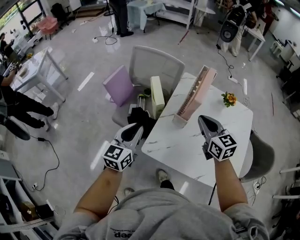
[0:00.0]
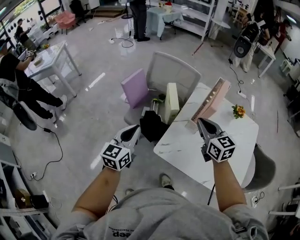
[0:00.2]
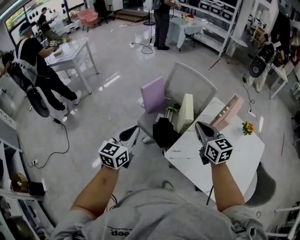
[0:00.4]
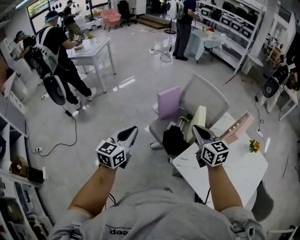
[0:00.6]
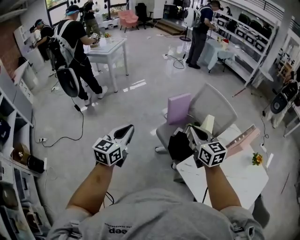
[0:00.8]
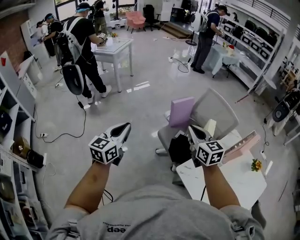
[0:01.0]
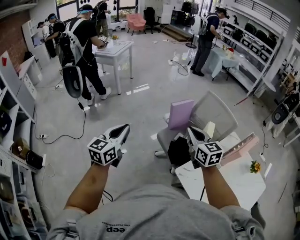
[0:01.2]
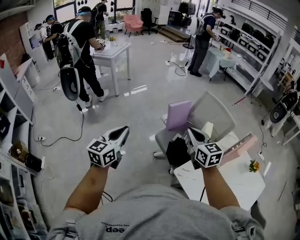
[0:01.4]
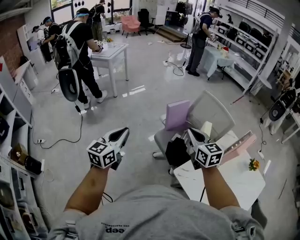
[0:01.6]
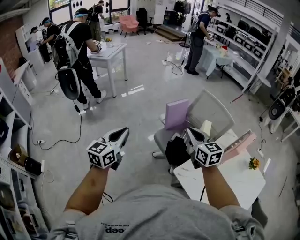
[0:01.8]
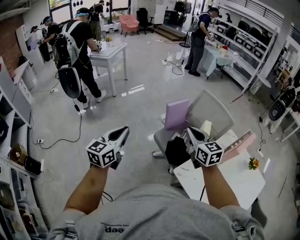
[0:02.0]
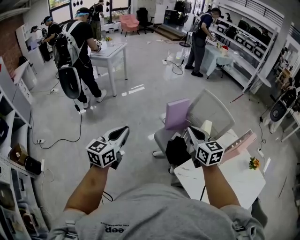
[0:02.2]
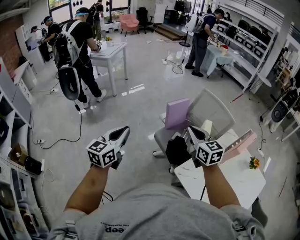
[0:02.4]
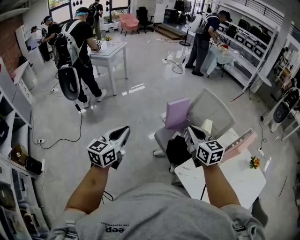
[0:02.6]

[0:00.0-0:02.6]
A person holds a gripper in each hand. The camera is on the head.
0:00.0 to 0:01.2: The right gripper ends up about 35 cm from where it was, and changes its angle by about 30 degrees. The left gripper moves approximately 40 cm, and swivels roughly 30 degrees.
0:01.2 to 0:02.6: There are only small adjustments of the grippers.

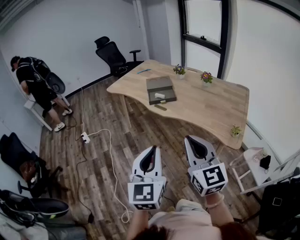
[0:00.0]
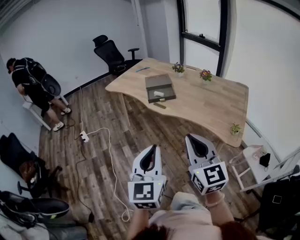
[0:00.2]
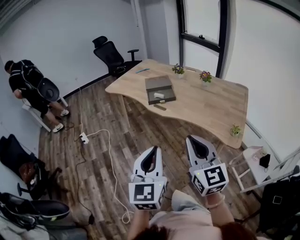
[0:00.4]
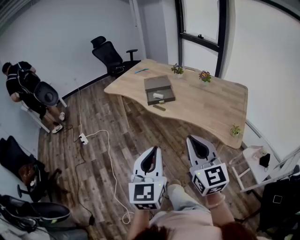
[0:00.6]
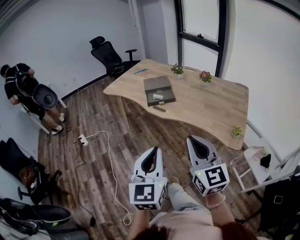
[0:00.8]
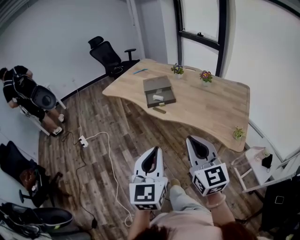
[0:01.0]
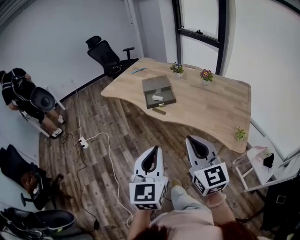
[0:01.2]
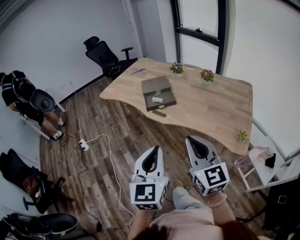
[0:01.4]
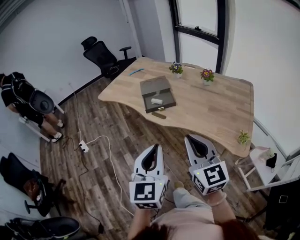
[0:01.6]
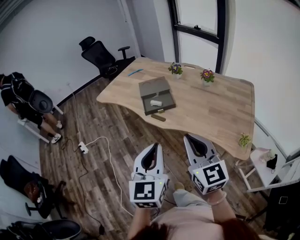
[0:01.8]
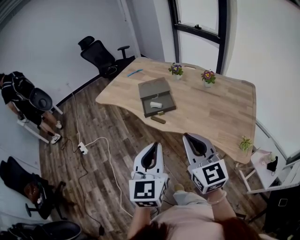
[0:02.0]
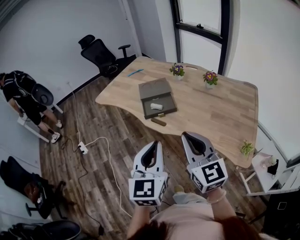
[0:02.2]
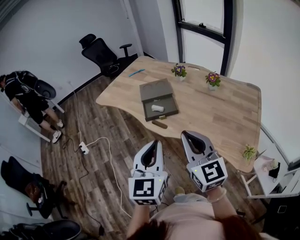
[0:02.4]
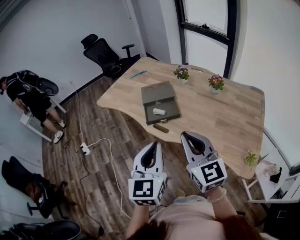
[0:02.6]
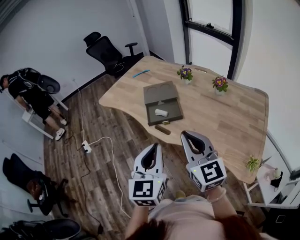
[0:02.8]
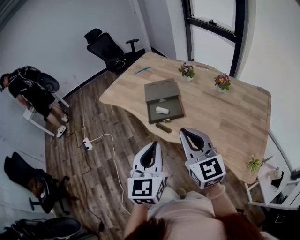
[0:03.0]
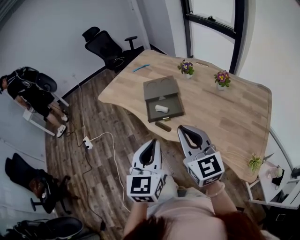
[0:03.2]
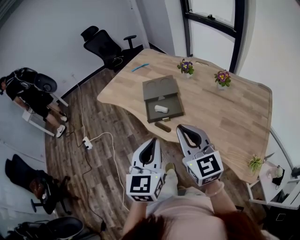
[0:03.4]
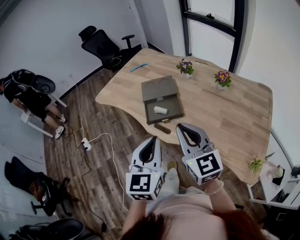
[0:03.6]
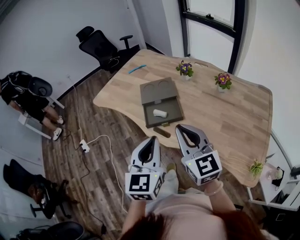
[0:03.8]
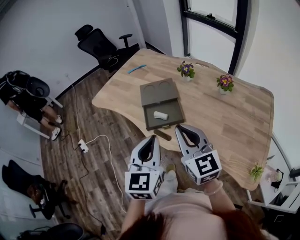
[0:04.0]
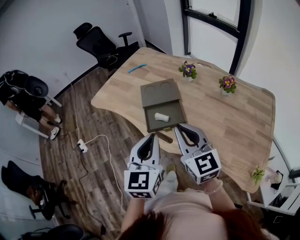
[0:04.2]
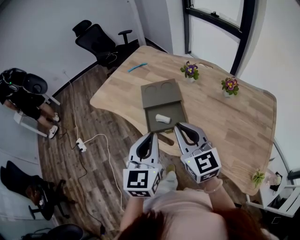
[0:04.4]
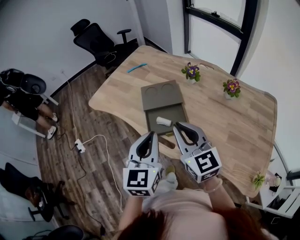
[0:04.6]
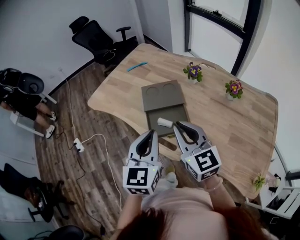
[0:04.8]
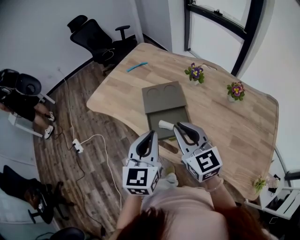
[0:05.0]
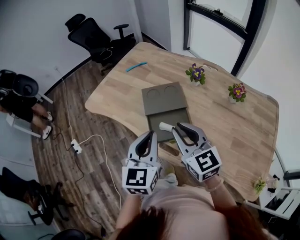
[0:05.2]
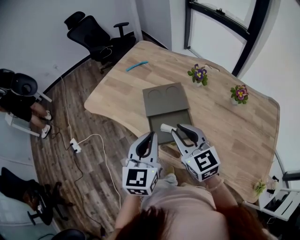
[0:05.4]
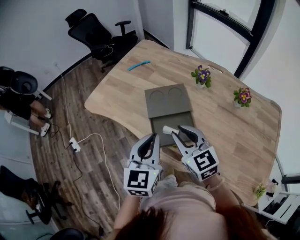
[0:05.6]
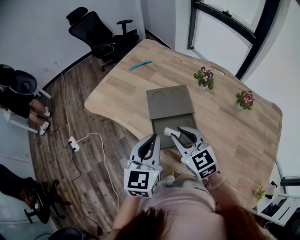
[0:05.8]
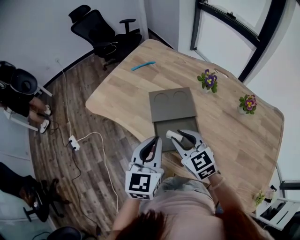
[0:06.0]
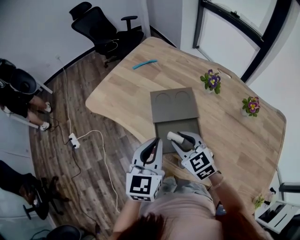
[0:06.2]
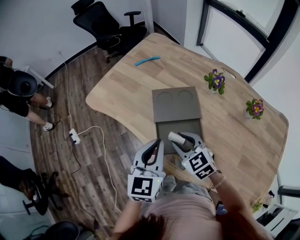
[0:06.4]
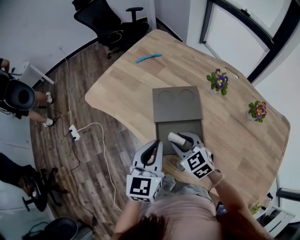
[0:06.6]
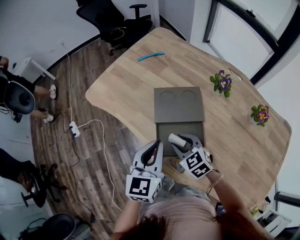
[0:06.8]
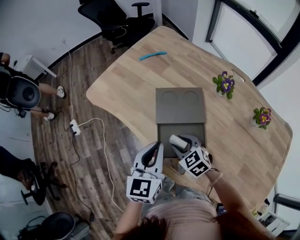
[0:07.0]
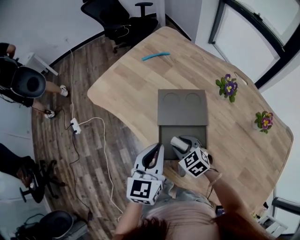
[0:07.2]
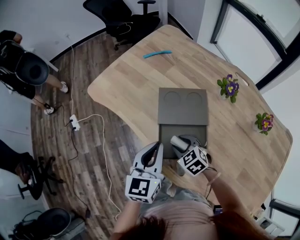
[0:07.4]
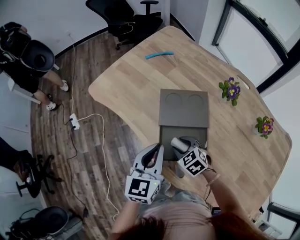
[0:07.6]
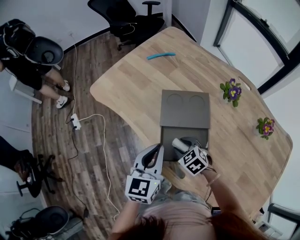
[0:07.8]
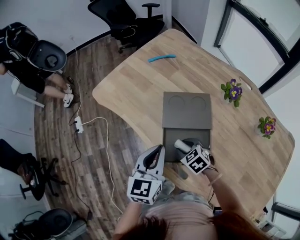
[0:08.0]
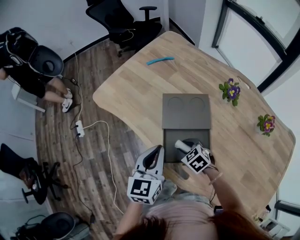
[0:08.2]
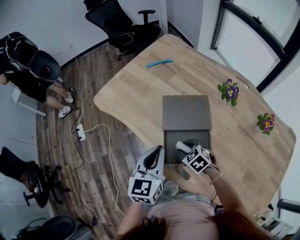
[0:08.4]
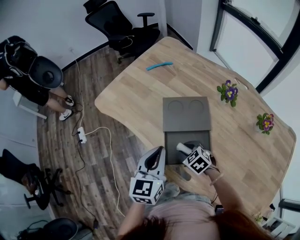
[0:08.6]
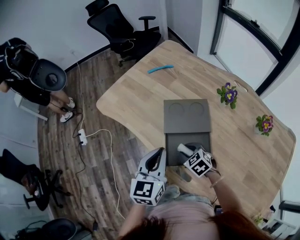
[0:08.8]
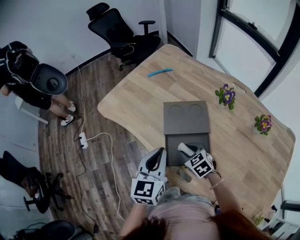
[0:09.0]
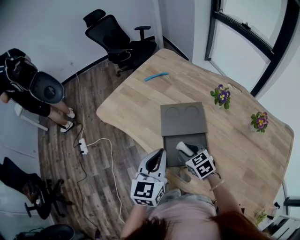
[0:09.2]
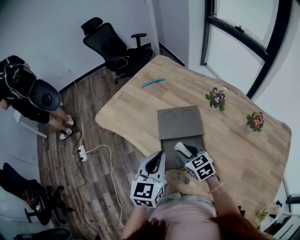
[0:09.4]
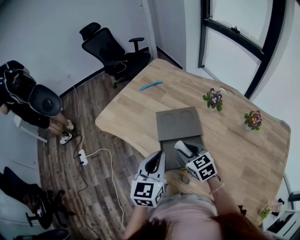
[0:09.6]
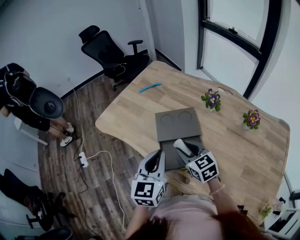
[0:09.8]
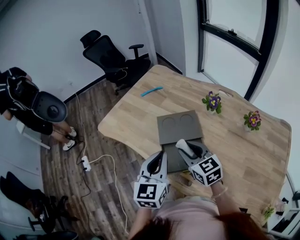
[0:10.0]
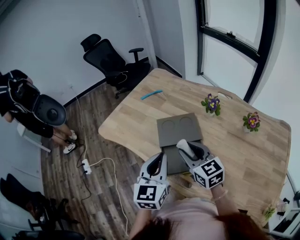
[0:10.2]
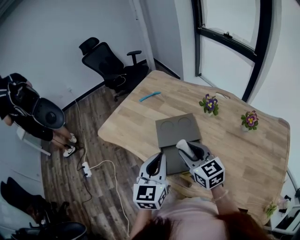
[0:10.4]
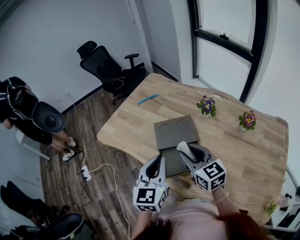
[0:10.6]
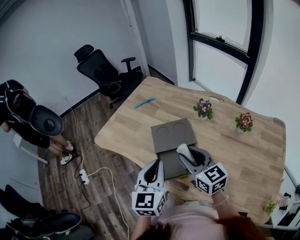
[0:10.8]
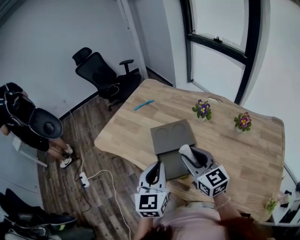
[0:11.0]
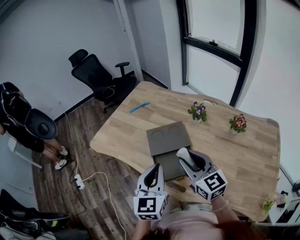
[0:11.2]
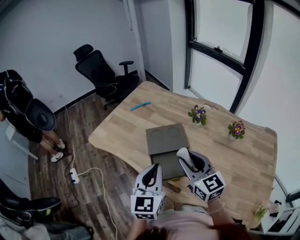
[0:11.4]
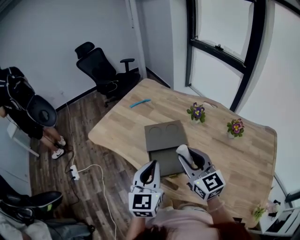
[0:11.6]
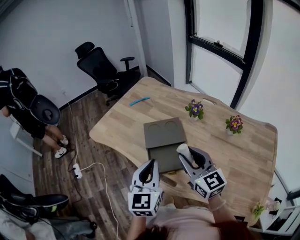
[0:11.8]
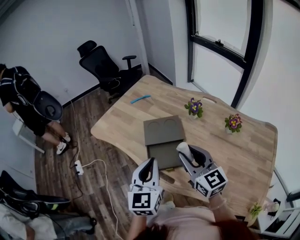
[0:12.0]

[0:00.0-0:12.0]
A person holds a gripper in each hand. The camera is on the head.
0:00.0 to 0:01.6: The grippers both shift forward by some 15 cm.
0:01.6 to 0:03.0: The grippers both shift forward by about 15 cm.
0:03.0 to 0:04.4: The grippers both shift forward by roughly 15 cm.
0:04.4 to 0:06.0: The right gripper travels forward, downward and to the left by approximately 20 cm, turns by some 20 degrees, and opens. Meanwhile the left gripper is displaced forward and downward by some 15 cm.
0:06.0 to 0:07.6: The right gripper is displaced downward by about 20 cm, and swivels roughly 30 degrees. The left gripper travels downward by roughly 10 cm.
0:07.6 to 0:09.0: The grippers stay close to where they were, moving slightly.
0:09.0 to 0:10.4: The left gripper moves upward, approximately 5 cm, while the right gripper travels upward by about 20 cm, and tips its fingers upward by approximately 30 degrees.
0:10.4 to 0:12.0: The left gripper goes about 5 cm backward. The right gripper is displaced upward, backward and to the right by about 10 cm.

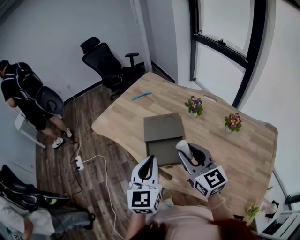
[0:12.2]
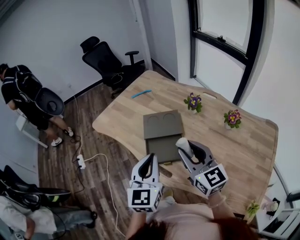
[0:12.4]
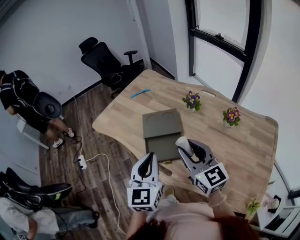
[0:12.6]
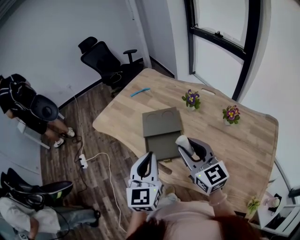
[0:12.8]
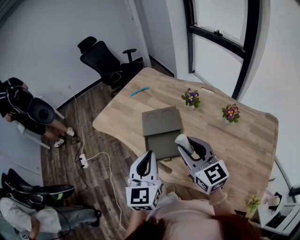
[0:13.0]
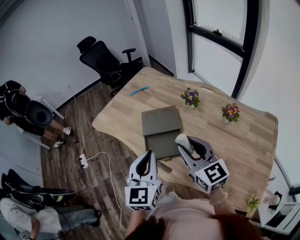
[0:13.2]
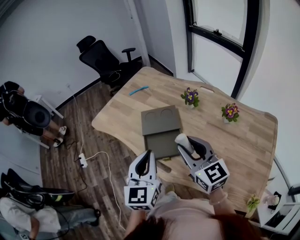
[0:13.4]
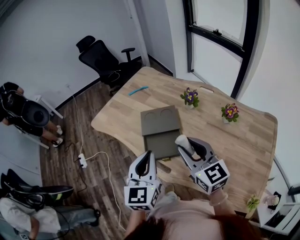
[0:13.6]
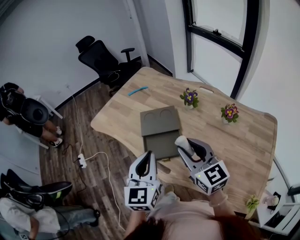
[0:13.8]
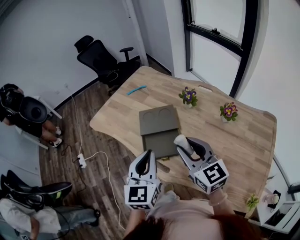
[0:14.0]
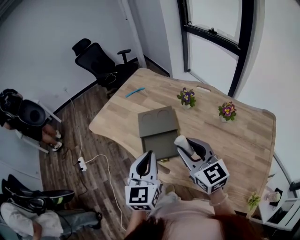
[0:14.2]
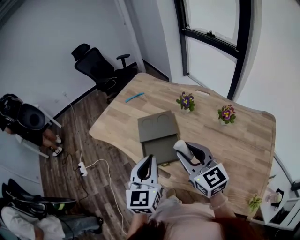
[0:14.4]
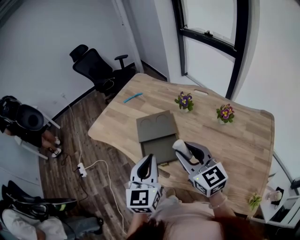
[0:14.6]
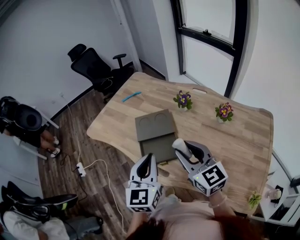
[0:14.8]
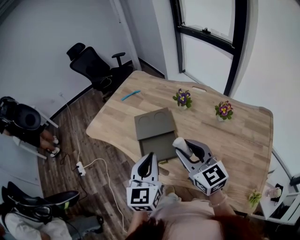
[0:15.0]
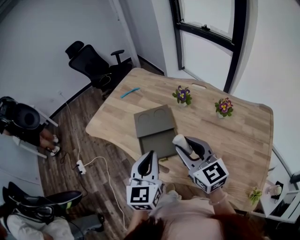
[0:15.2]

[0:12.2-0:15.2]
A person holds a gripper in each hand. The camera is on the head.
0:12.2 to 0:15.2: The grippers move only a little.

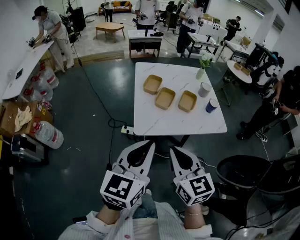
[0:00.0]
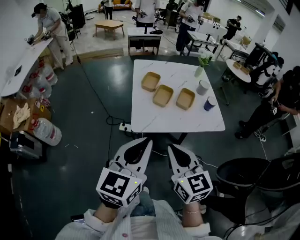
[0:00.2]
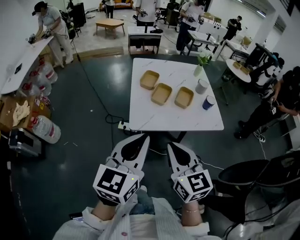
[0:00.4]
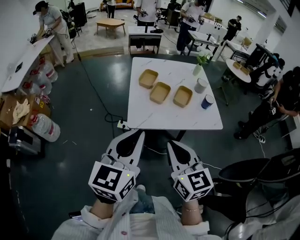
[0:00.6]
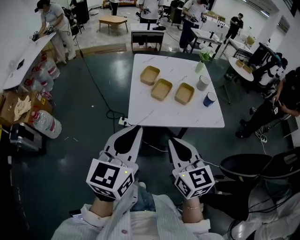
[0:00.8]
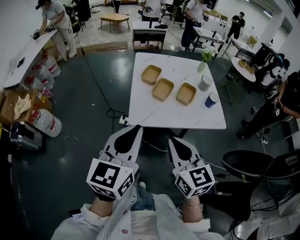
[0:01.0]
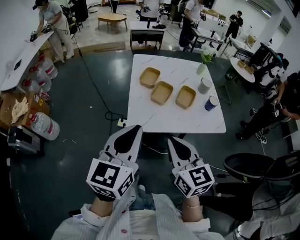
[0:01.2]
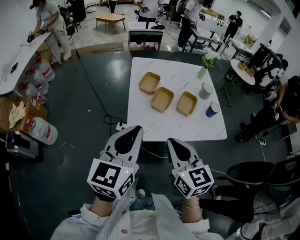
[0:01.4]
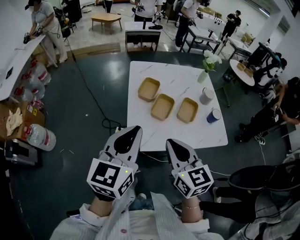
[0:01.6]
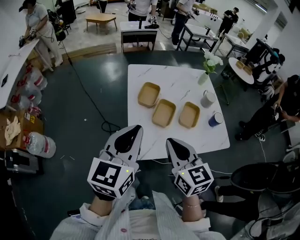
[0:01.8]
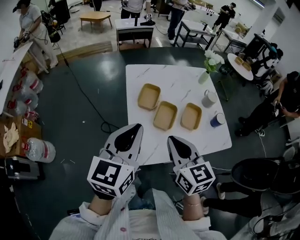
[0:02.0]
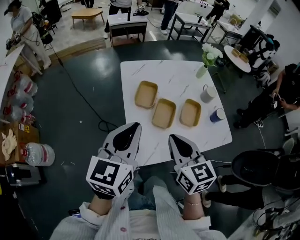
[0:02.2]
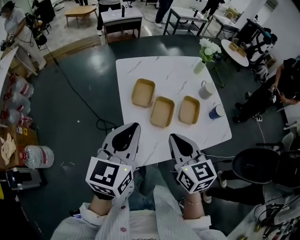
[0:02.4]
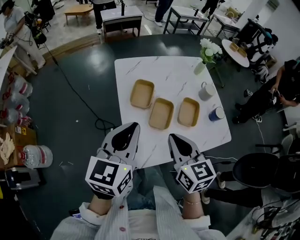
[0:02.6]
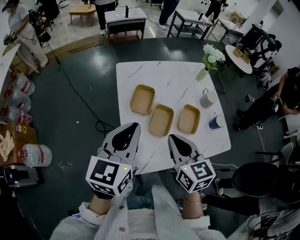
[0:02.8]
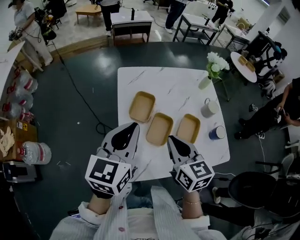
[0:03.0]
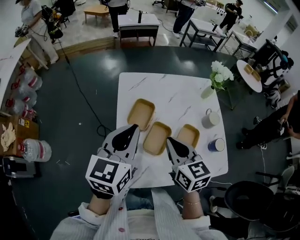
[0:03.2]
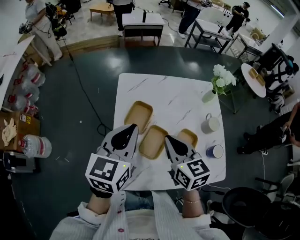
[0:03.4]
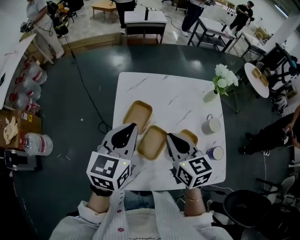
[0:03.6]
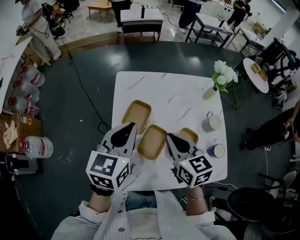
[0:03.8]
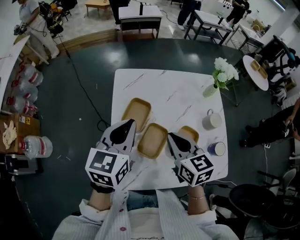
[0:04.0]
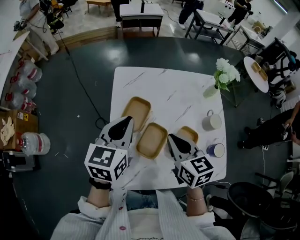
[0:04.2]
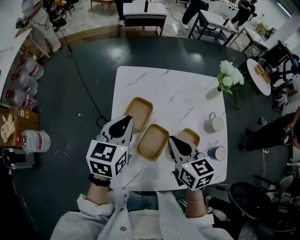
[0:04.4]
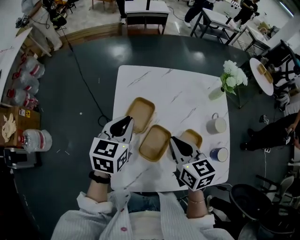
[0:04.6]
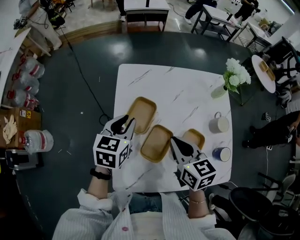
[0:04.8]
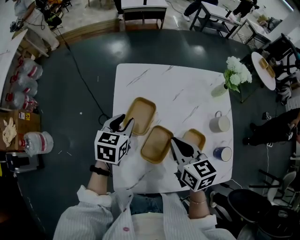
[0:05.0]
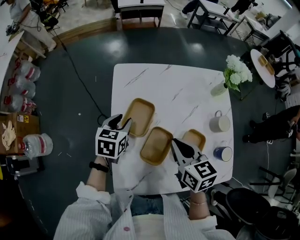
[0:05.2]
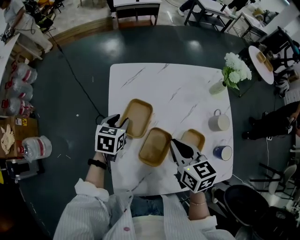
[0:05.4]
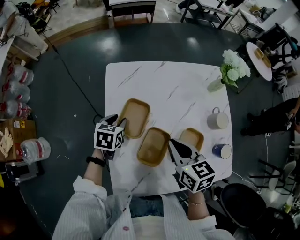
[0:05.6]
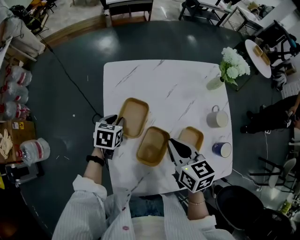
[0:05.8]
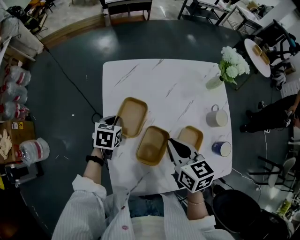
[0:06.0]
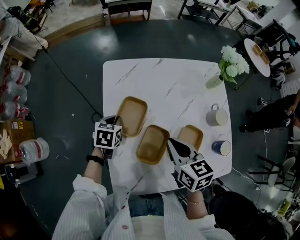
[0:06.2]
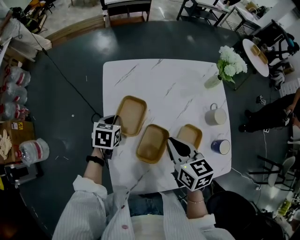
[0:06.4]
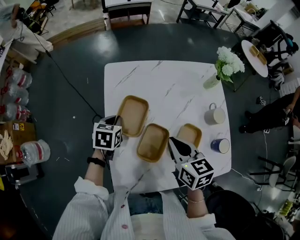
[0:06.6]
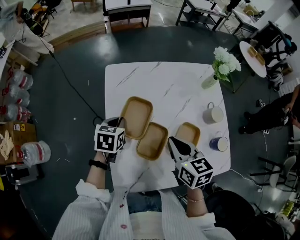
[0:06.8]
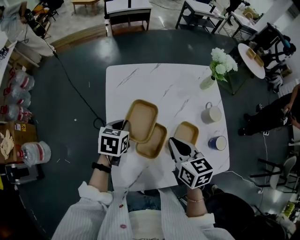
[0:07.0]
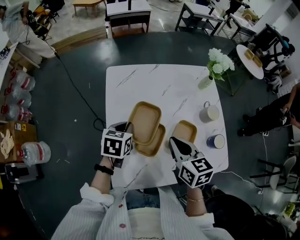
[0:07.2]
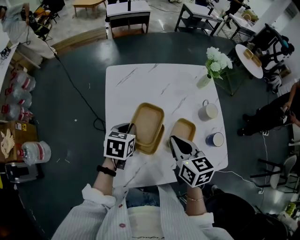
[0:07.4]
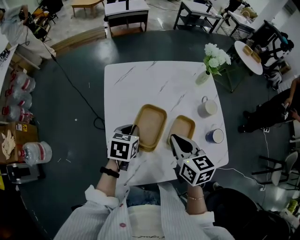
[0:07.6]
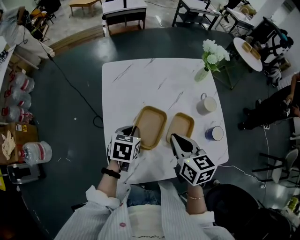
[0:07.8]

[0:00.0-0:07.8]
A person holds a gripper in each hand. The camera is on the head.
0:00.0 to 0:01.6: Both grippers travel together forward, some 15 cm.
0:01.6 to 0:03.2: Both grippers travel together forward, roughly 25 cm.
0:03.2 to 0:04.6: The right gripper moves forward, about 5 cm, while the left gripper is displaced downward and forward by approximately 15 cm.
0:04.6 to 0:06.2: The left gripper moves downward, roughly 20 cm, changes its angle by roughly 30 degrees, and opens and closes again.
0:06.2 to 0:07.8: The right gripper goes approximately 5 cm backward. Meanwhile the left gripper travels backward, to the right and upward by some 15 cm.
